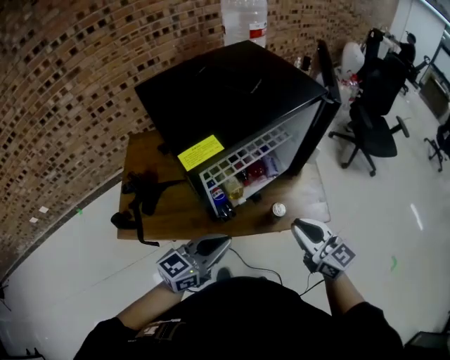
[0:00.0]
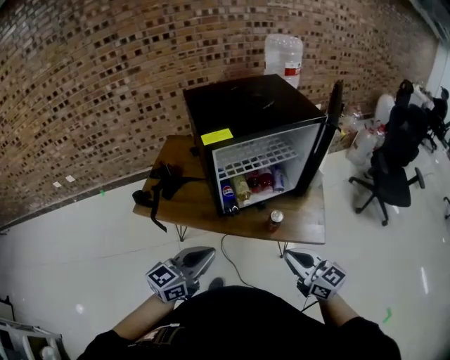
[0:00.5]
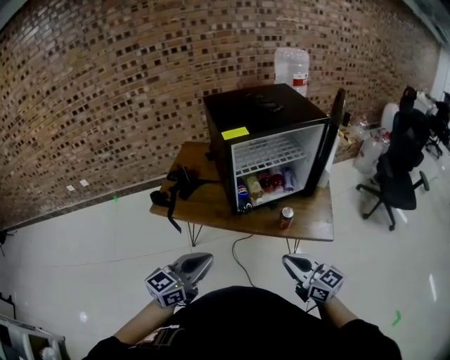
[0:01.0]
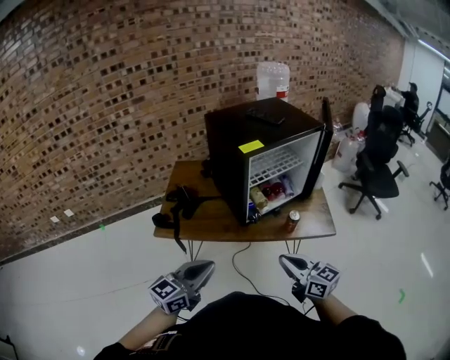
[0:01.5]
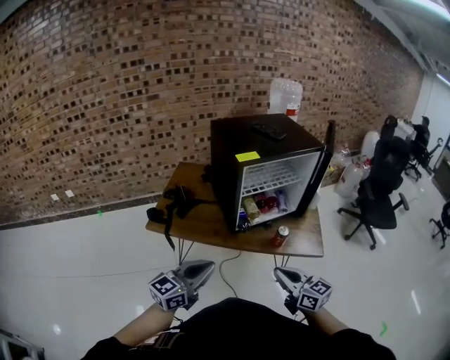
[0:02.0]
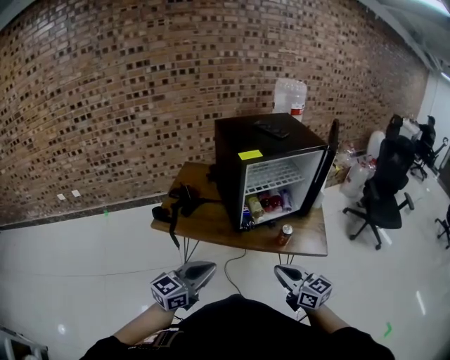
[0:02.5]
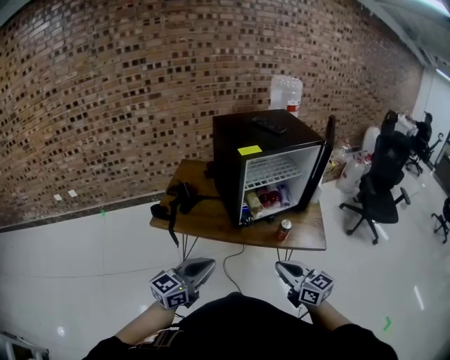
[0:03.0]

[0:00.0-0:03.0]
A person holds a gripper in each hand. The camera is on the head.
0:00.0 to 0:01.5: The grippers both shift backward and to the left by about 30 cm.
0:01.5 to 0:03.0: The right gripper ends up some 5 cm from where it was, while the left gripper goes some 5 cm to the right.

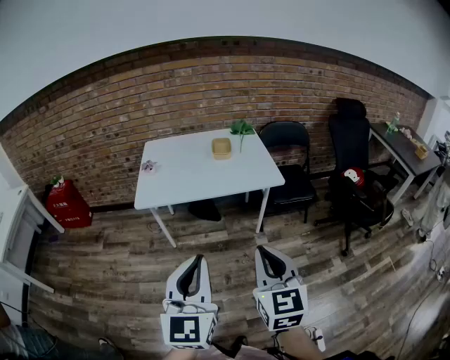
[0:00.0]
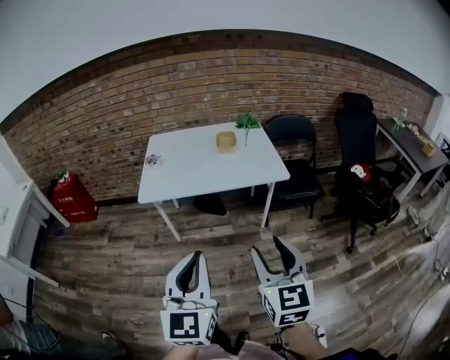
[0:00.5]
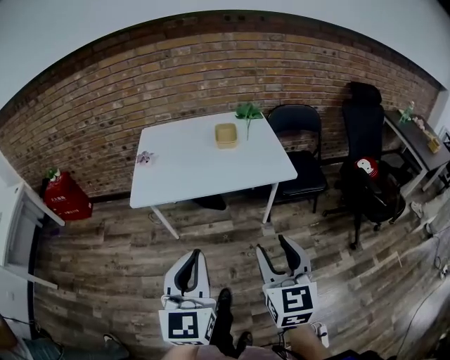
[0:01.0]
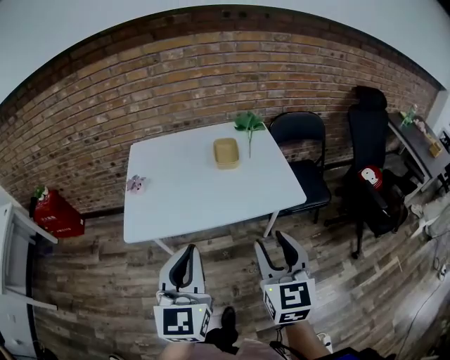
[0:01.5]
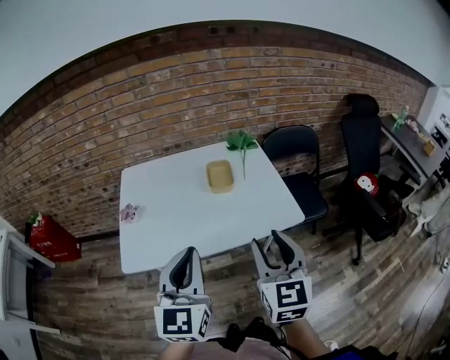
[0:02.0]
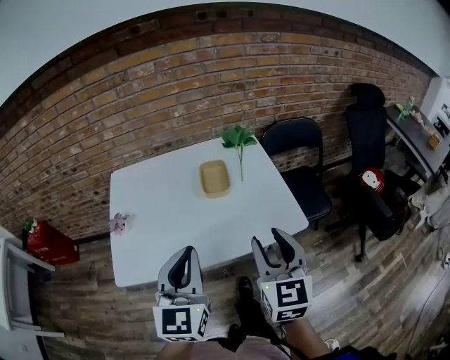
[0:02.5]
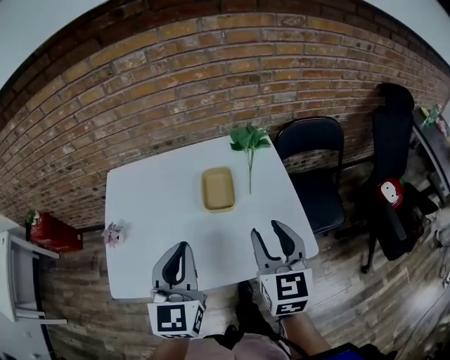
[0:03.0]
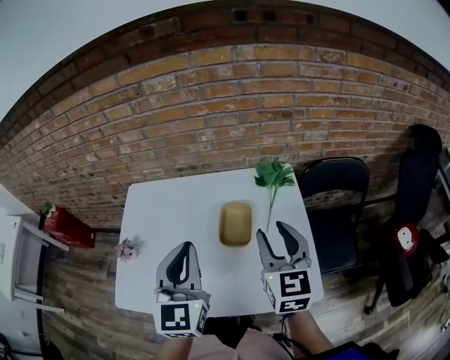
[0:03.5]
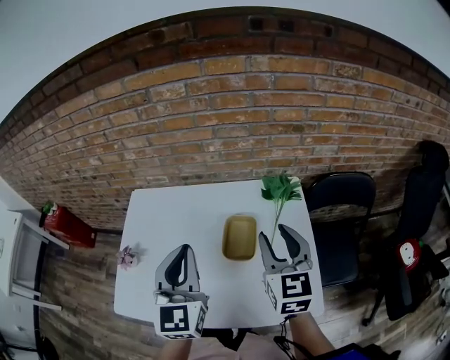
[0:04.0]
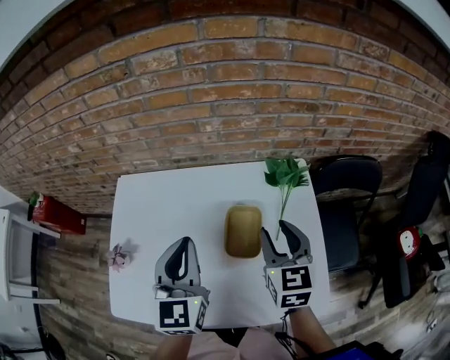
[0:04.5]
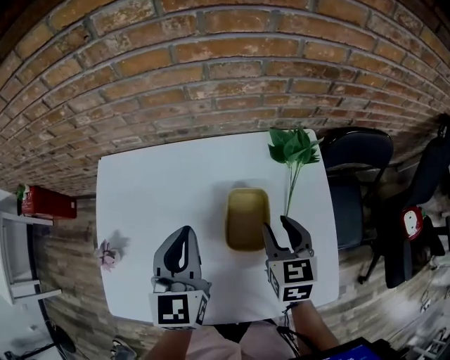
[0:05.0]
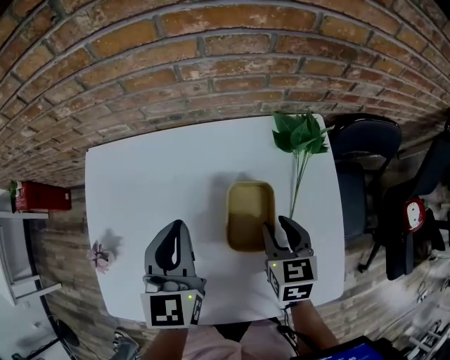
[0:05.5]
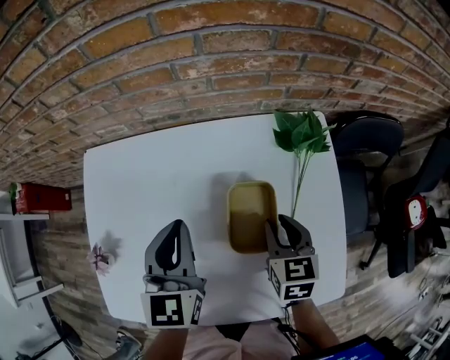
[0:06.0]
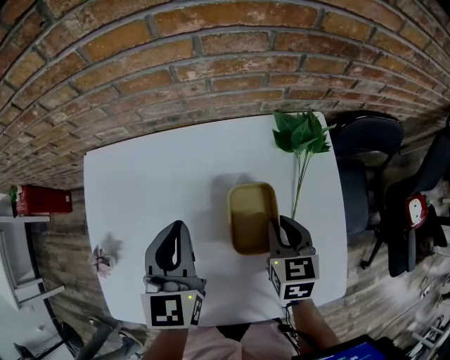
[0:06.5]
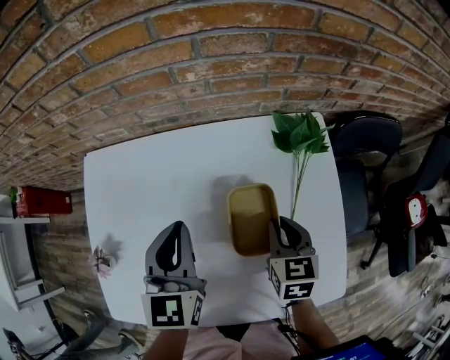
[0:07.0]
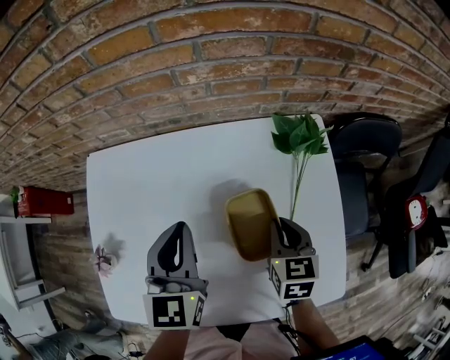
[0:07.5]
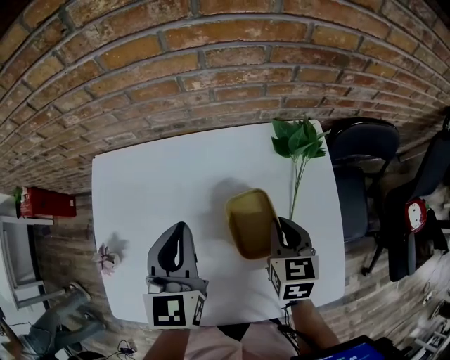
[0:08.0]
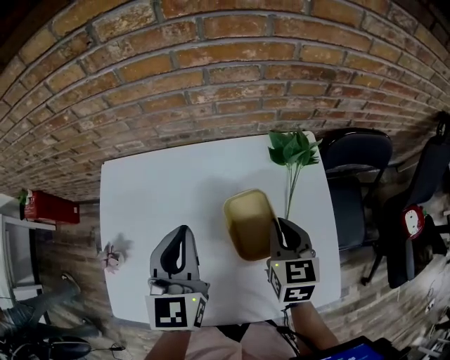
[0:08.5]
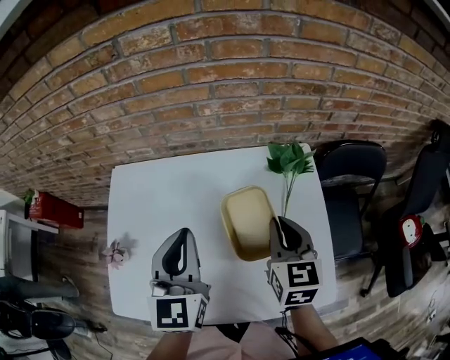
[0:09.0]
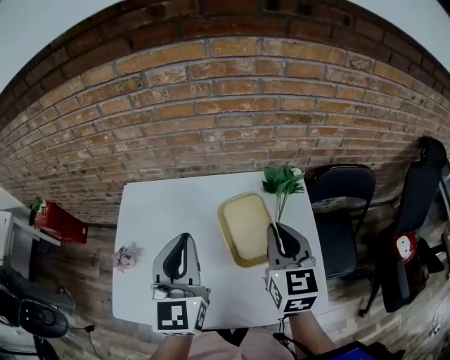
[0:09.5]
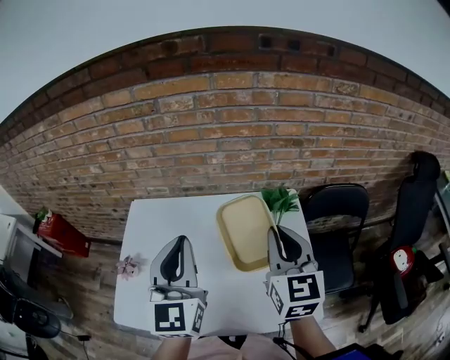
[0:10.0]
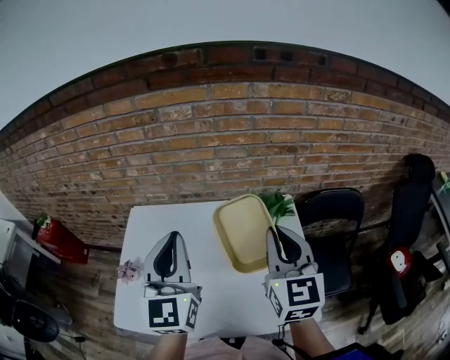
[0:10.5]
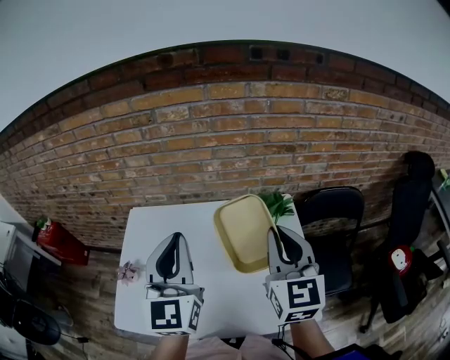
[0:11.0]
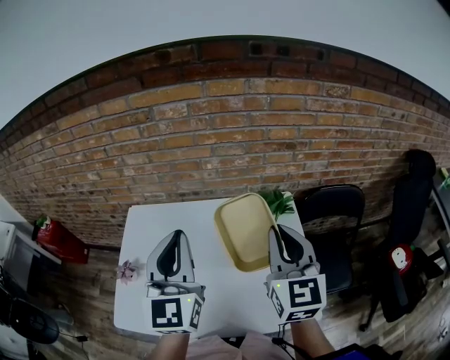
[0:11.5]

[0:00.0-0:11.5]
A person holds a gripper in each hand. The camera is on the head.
0:00.0 to 0:02.0: The two grippers go some 35 cm forward. The right gripper opens up.
0:02.0 to 0:04.0: The two grippers go some 35 cm forward.
0:04.0 to 0:06.0: The left gripper is displaced downward and forward by approximately 20 cm. Meanwhile the right gripper is displaced downward by approximately 20 cm, and turns by approximately 30 degrees.
0:06.0 to 0:07.5: The right gripper closes.
0:07.5 to 0:09.5: The right gripper travels upward by approximately 20 cm, and changes its angle by approximately 30 degrees. The left gripper heads upward and backward, covering roughly 15 cm.
0:09.5 to 0:11.5: The two grippers go roughly 10 cm upward.

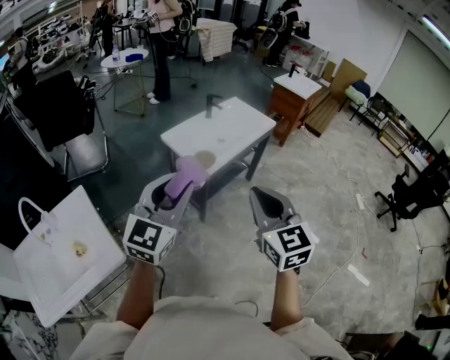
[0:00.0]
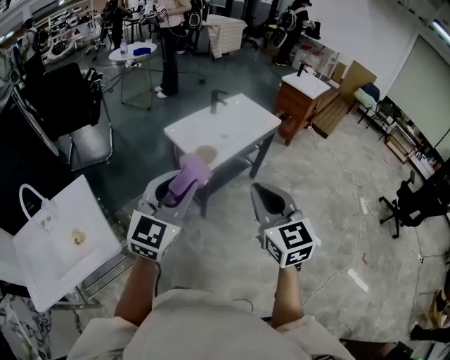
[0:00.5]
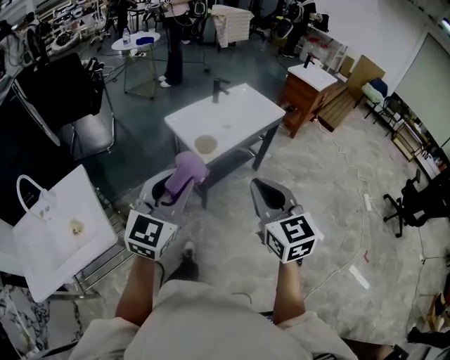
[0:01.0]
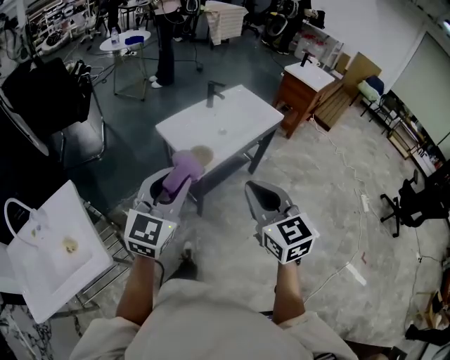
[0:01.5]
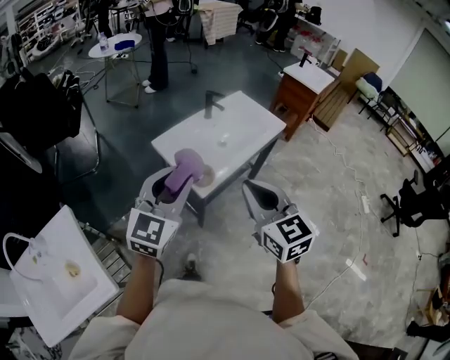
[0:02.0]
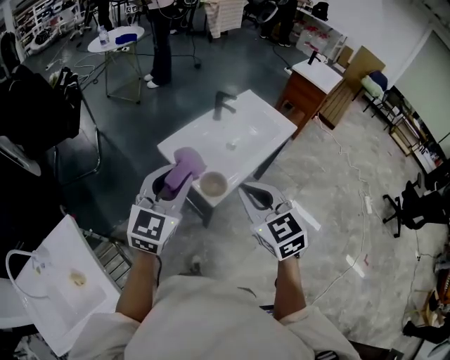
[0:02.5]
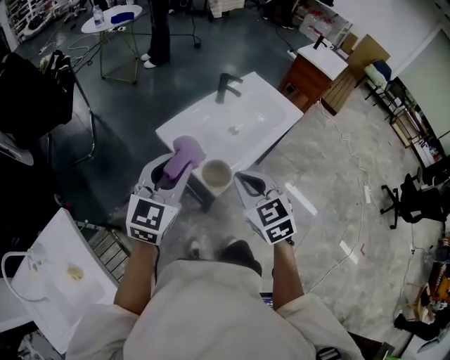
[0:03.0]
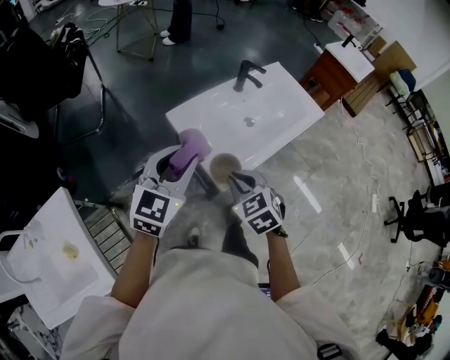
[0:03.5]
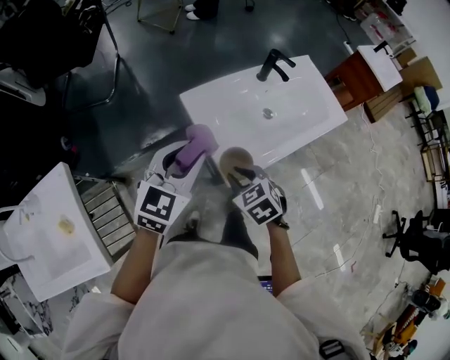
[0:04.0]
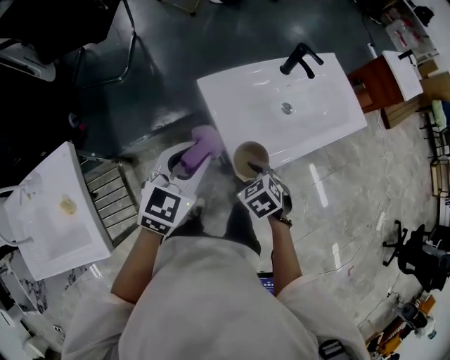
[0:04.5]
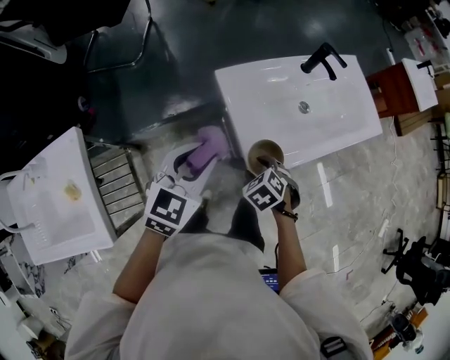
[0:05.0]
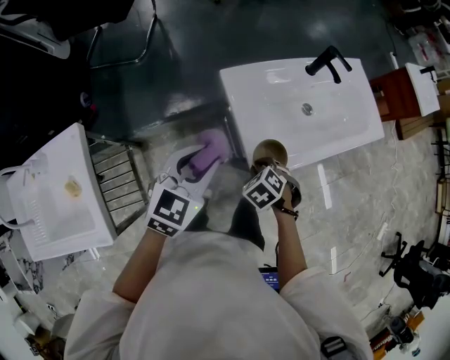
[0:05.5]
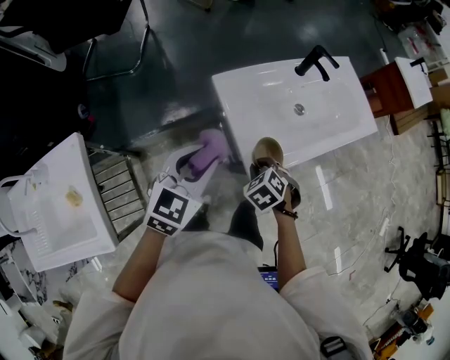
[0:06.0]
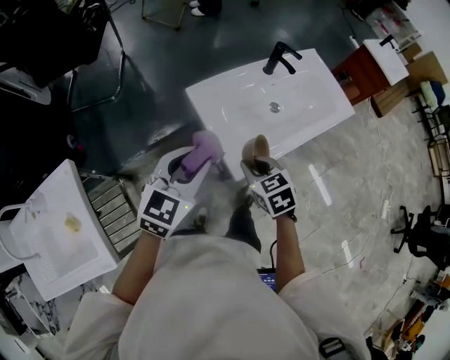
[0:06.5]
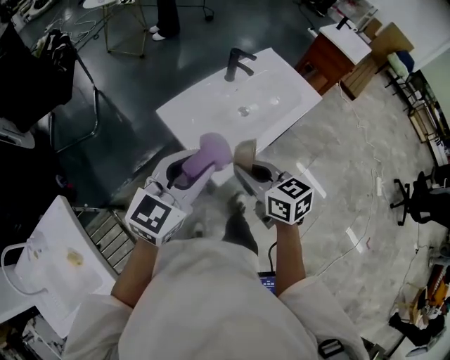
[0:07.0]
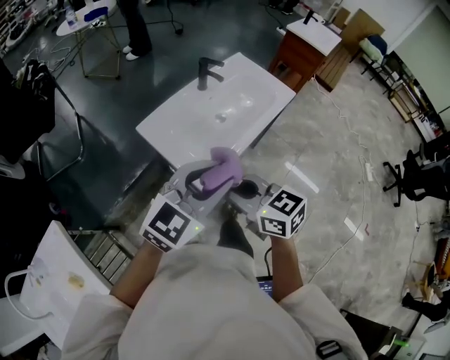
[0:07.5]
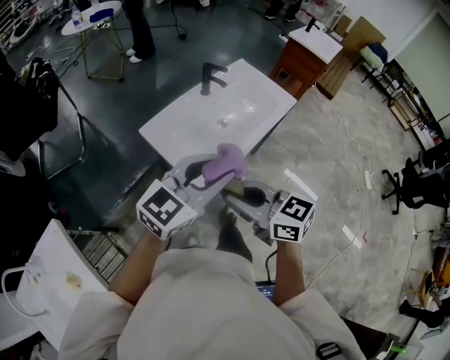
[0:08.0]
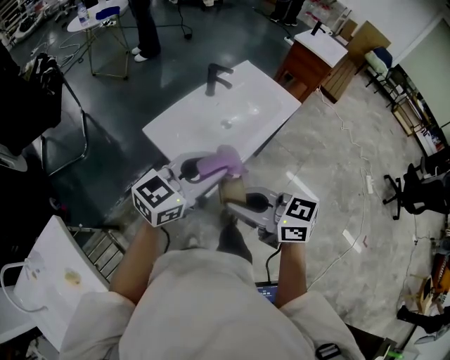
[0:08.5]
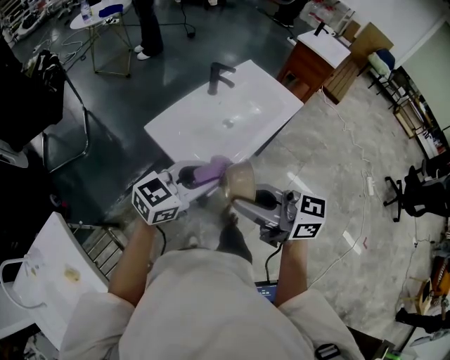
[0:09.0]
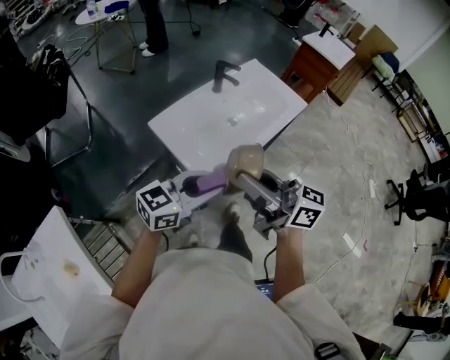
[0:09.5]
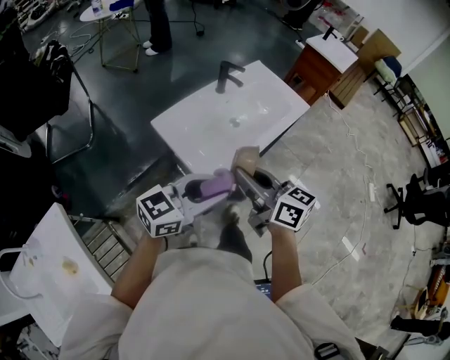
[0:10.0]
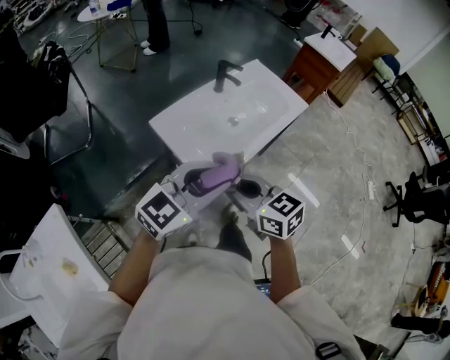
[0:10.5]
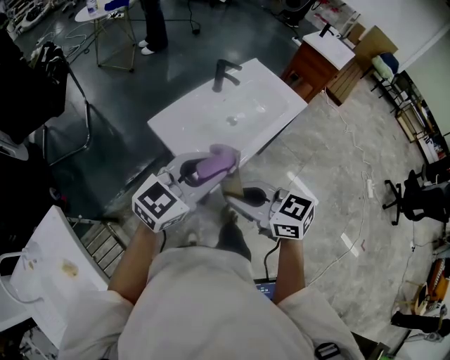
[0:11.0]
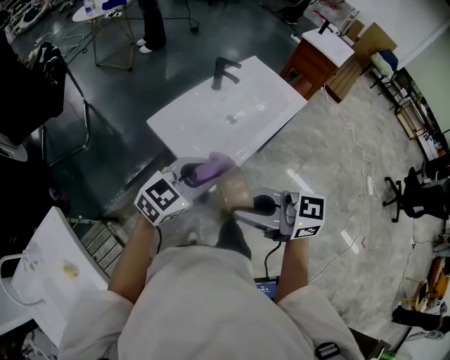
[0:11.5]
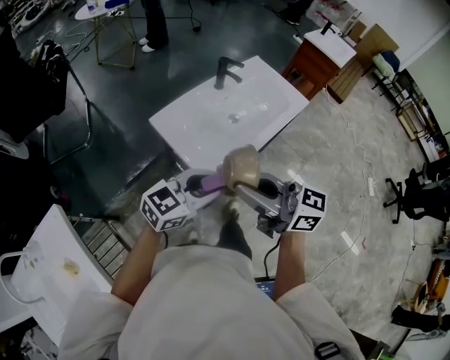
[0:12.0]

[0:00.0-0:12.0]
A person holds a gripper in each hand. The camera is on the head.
0:00.0 to 0:02.0: Both grippers move forward, roughly 25 cm.
0:02.0 to 0:04.0: The right gripper moves downward and forward, roughly 35 cm, and tips its fingers downward by roughly 40 degrees; the left gripper heads forward and downward, covering about 25 cm.
0:04.0 to 0:06.0: The right gripper shifts approximately 10 cm downward, and opens and closes again; the left gripper travels downward by some 5 cm.
0:06.0 to 0:08.0: The right gripper is displaced upward and backward by roughly 30 cm, and tips its fingers upward by approximately 60 degrees. The left gripper goes some 25 cm to the right and upward, and swivels about 40 degrees.
0:08.0 to 0:10.0: The left gripper travels downward by some 5 cm; the right gripper changes place by approximately 5 cm, and rotates some 20 degrees.
0:10.0 to 0:12.0: The right gripper ends up approximately 10 cm from where it was, and rotates about 20 degrees.
